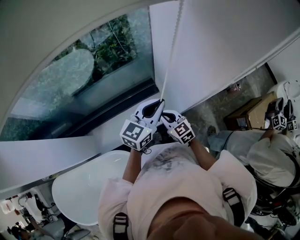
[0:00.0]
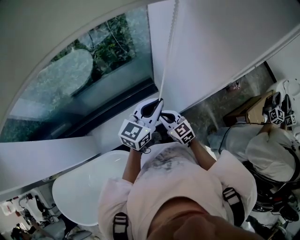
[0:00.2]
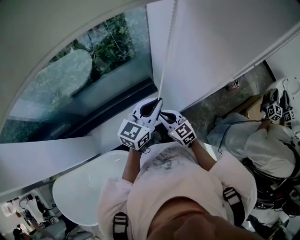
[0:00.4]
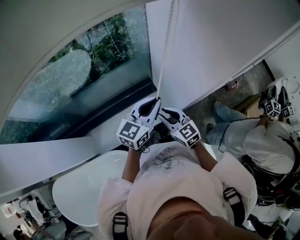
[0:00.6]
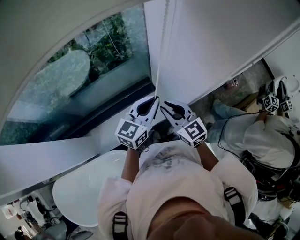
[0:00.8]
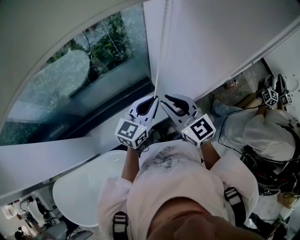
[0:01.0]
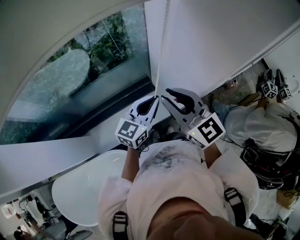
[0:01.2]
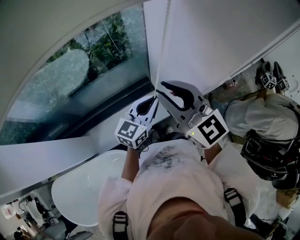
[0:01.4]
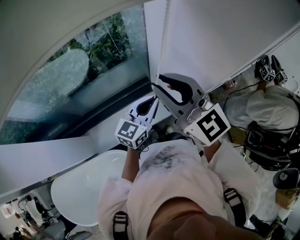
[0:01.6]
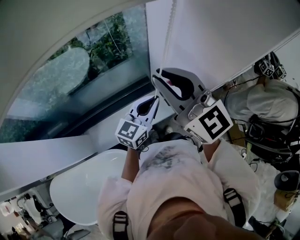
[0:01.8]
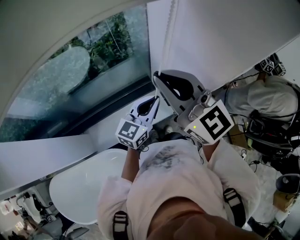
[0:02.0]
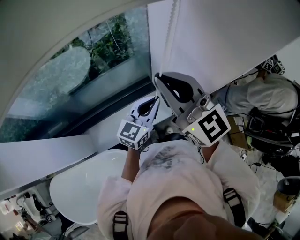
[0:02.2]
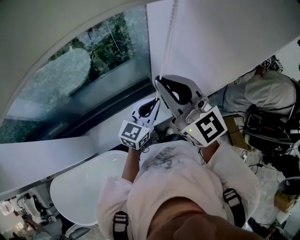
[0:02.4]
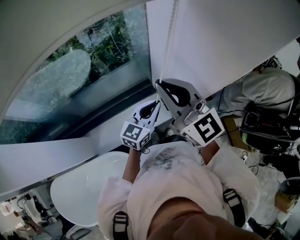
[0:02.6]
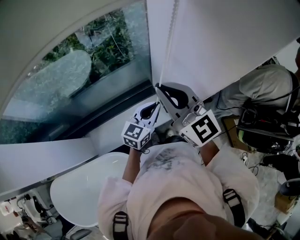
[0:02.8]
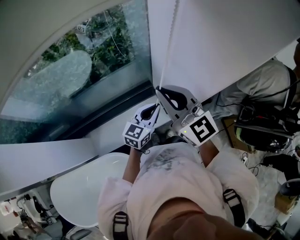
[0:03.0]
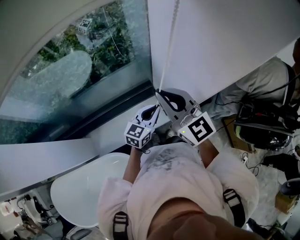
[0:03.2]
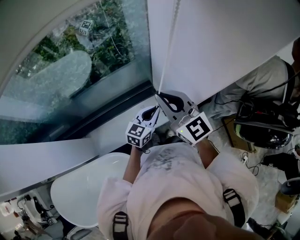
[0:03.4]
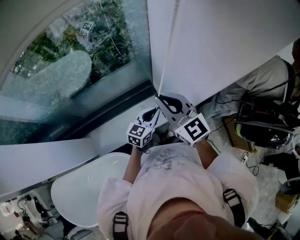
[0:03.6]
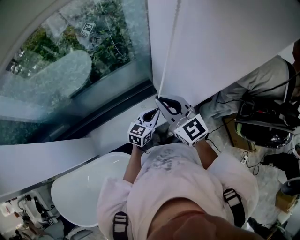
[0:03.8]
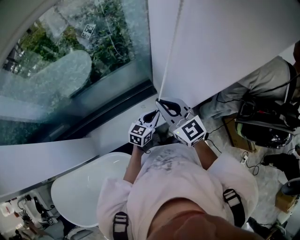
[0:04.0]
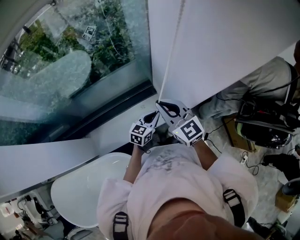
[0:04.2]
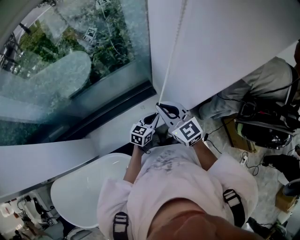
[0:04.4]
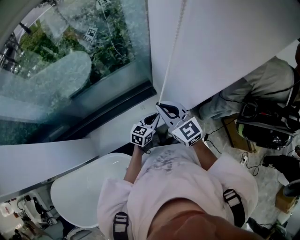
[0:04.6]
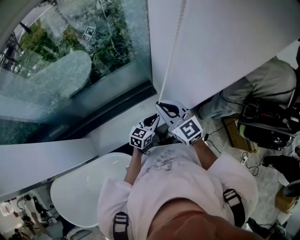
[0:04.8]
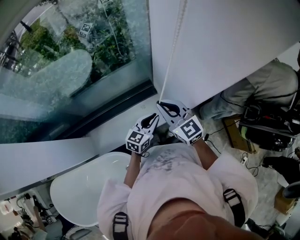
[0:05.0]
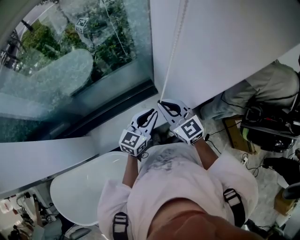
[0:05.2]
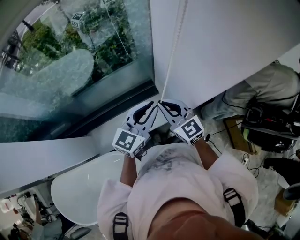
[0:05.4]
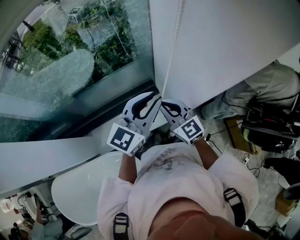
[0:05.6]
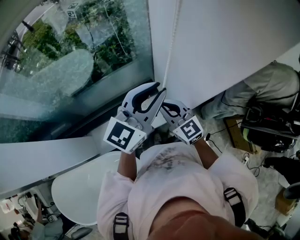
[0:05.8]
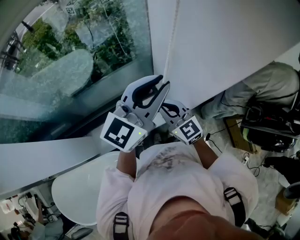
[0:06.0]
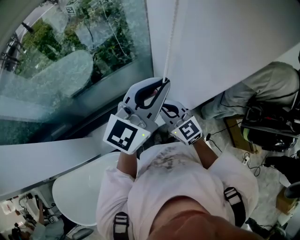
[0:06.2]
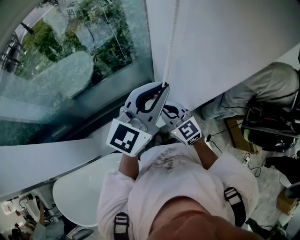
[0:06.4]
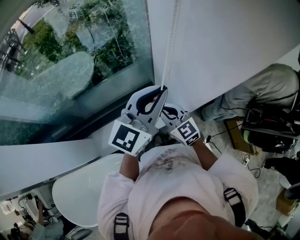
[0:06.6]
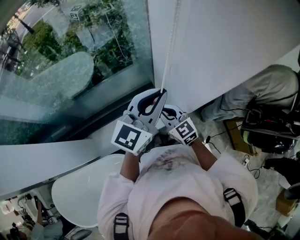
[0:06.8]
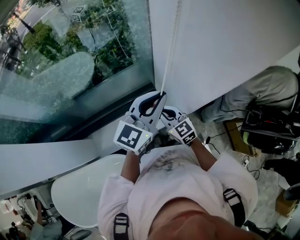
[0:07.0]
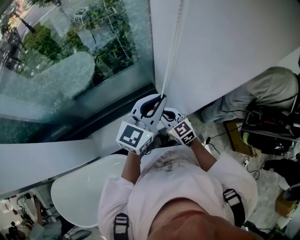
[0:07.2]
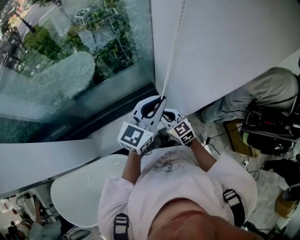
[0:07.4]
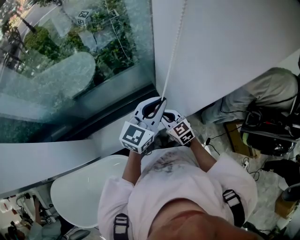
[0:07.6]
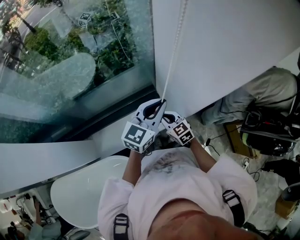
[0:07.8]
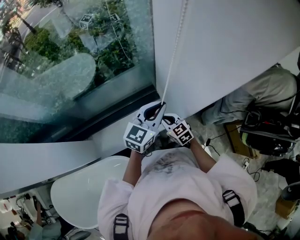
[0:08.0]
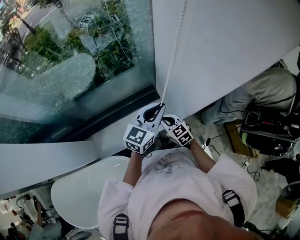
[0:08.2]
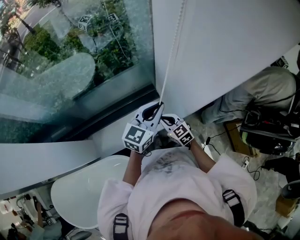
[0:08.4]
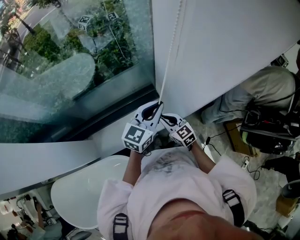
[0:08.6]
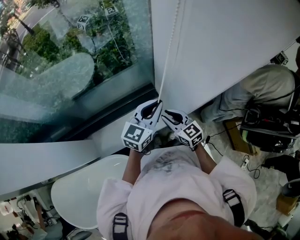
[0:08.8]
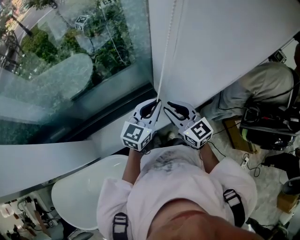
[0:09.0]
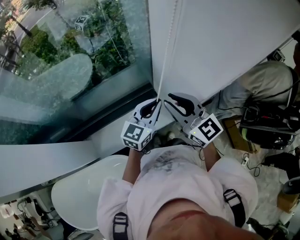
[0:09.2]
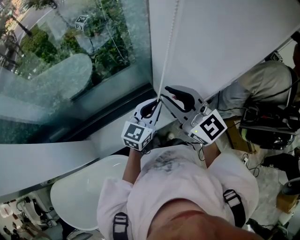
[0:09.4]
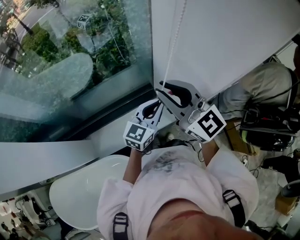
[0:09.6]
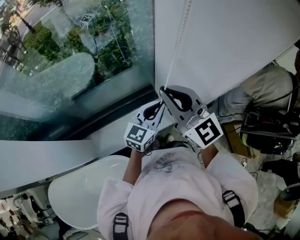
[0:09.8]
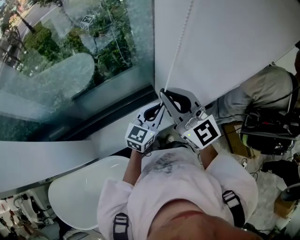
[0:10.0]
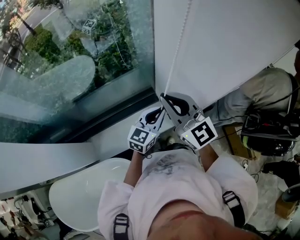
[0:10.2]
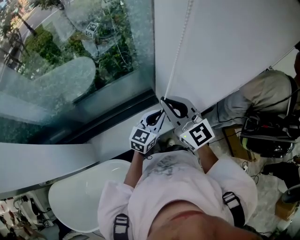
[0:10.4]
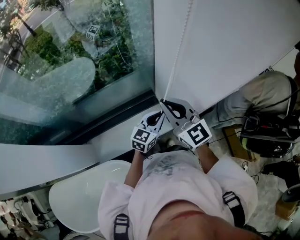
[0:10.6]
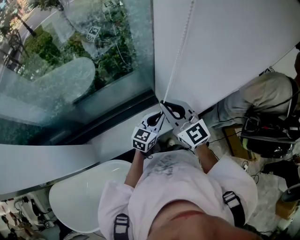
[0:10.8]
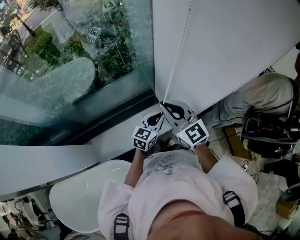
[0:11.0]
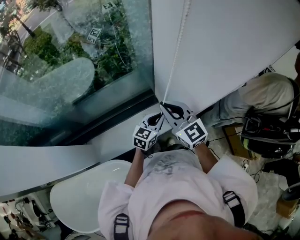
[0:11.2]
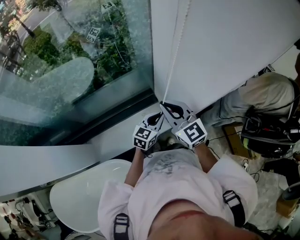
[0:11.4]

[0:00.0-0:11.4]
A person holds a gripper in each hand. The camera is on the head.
0:00.0 to 0:01.4: The right gripper shifts some 30 cm upward, and rotates some 30 degrees.
0:01.4 to 0:02.8: The grippers make only small movements.
0:02.8 to 0:04.2: The two grippers go about 15 cm downward.
0:04.2 to 0:05.6: The left gripper heads upward, covering some 30 cm, and swivels approximately 30 degrees.
0:05.6 to 0:07.2: The left gripper moves approximately 10 cm upward and comes back, while the right gripper moves downward, approximately 10 cm.
0:07.2 to 0:08.6: The right gripper changes place by about 5 cm, while the left gripper heads downward, covering about 5 cm.
0:08.6 to 0:10.0: The right gripper moves upward, some 30 cm, and tilts its fingers about 30 degrees upward.
0:10.0 to 0:11.4: The grippers both shift downward by approximately 10 cm.

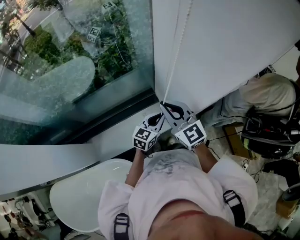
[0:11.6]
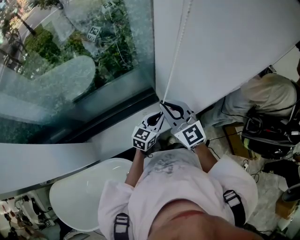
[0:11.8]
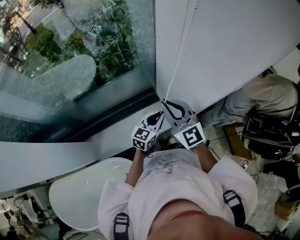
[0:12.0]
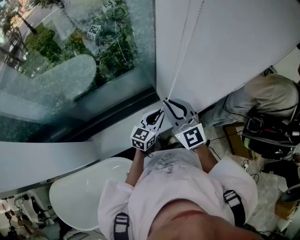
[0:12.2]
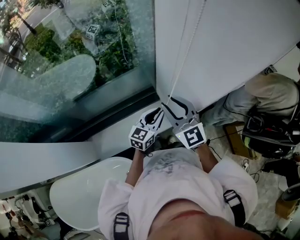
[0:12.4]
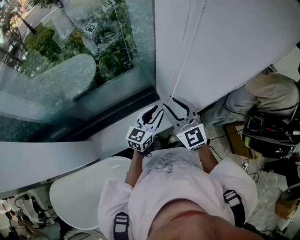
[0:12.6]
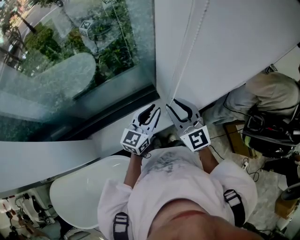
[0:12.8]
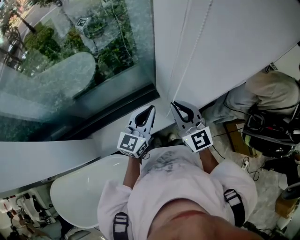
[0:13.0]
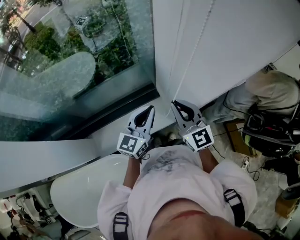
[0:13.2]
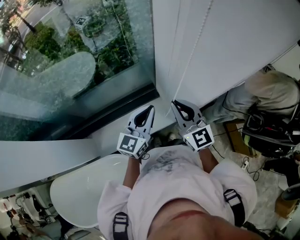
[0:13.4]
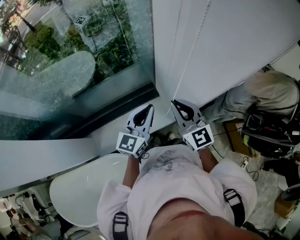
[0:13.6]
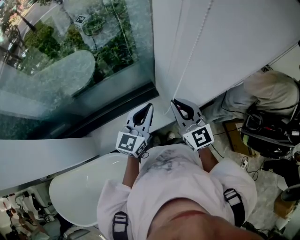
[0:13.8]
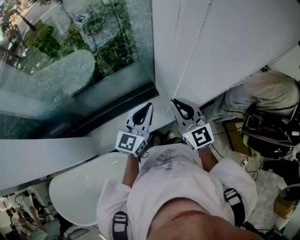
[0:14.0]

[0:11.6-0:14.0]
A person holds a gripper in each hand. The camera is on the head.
0:11.6 to 0:12.8: The right gripper opens; the left gripper moves upward, about 10 cm.
0:12.8 to 0:14.0: The left gripper closes up. Meanwhile the right gripper closes.

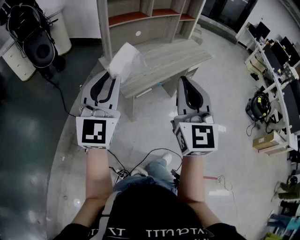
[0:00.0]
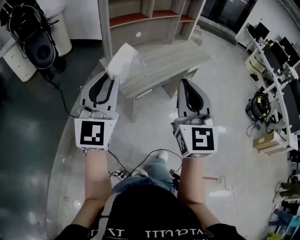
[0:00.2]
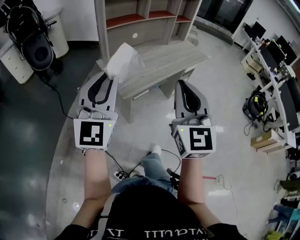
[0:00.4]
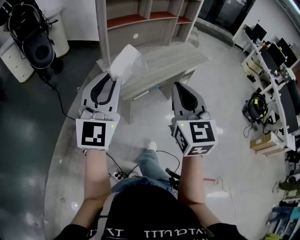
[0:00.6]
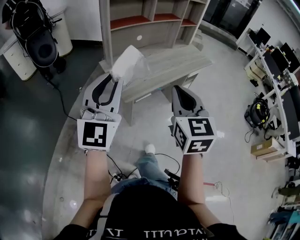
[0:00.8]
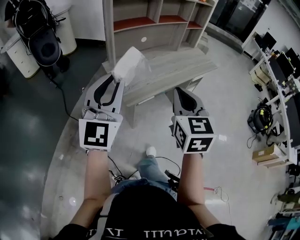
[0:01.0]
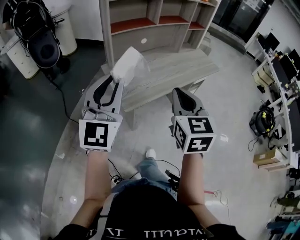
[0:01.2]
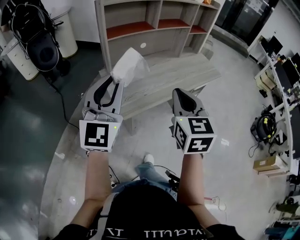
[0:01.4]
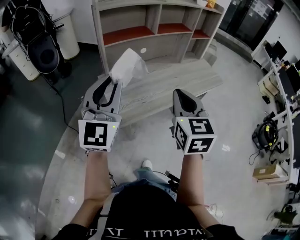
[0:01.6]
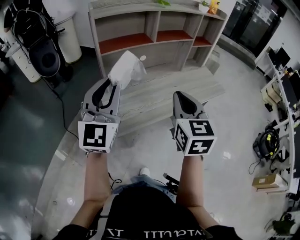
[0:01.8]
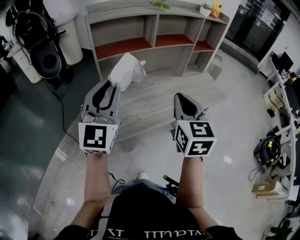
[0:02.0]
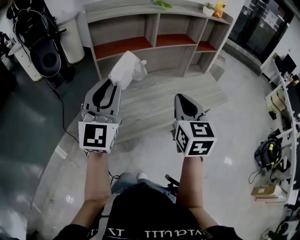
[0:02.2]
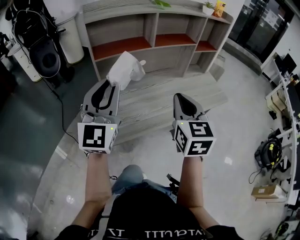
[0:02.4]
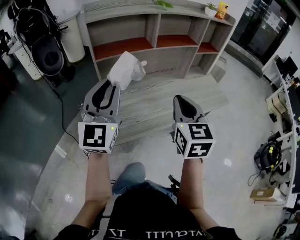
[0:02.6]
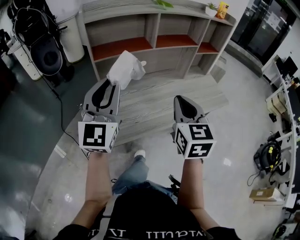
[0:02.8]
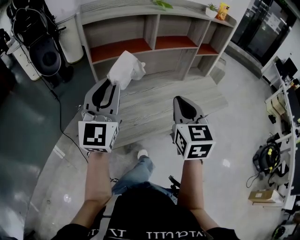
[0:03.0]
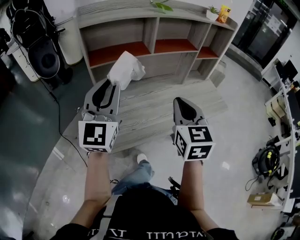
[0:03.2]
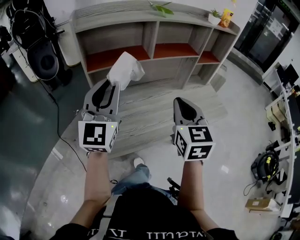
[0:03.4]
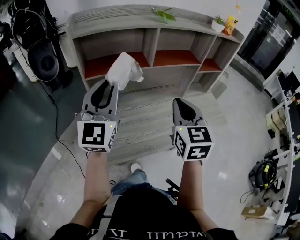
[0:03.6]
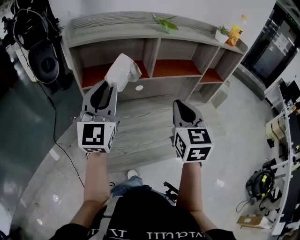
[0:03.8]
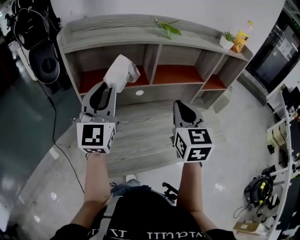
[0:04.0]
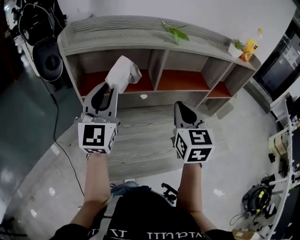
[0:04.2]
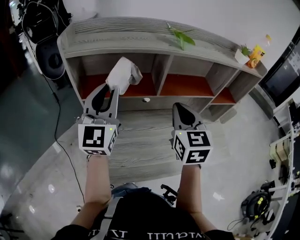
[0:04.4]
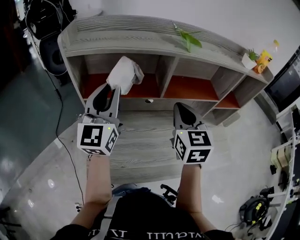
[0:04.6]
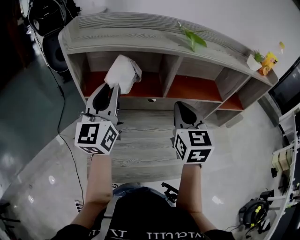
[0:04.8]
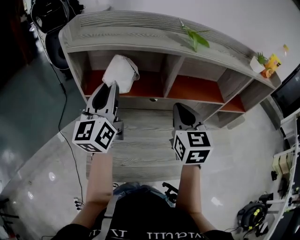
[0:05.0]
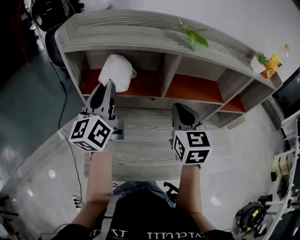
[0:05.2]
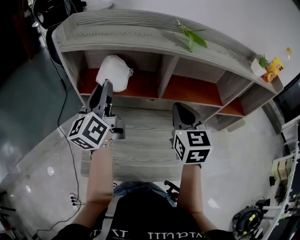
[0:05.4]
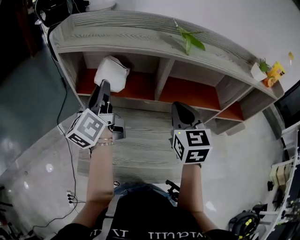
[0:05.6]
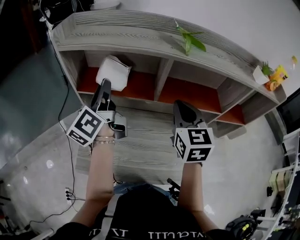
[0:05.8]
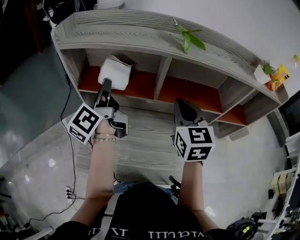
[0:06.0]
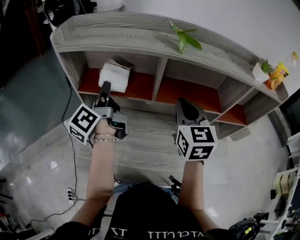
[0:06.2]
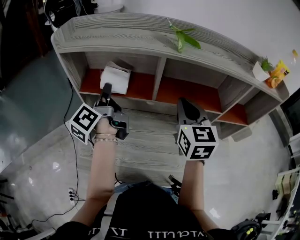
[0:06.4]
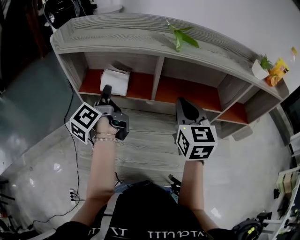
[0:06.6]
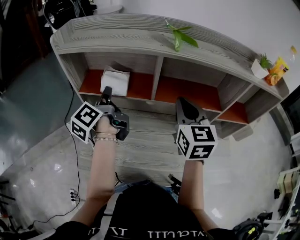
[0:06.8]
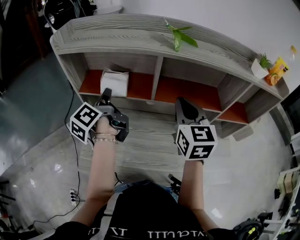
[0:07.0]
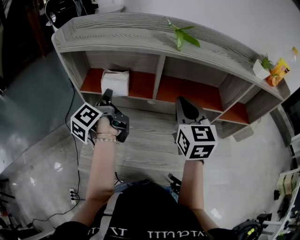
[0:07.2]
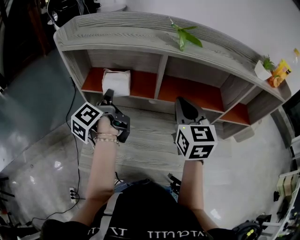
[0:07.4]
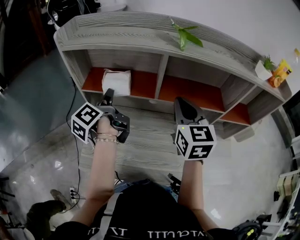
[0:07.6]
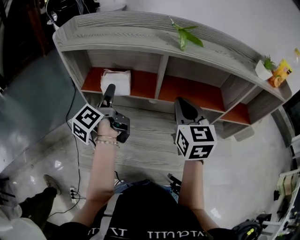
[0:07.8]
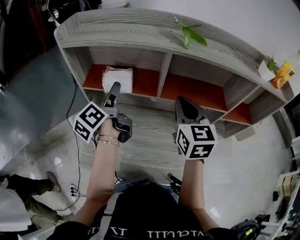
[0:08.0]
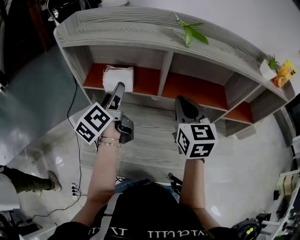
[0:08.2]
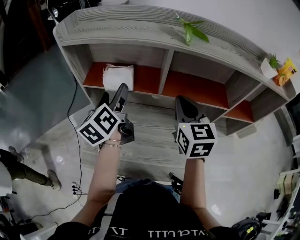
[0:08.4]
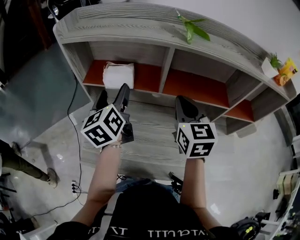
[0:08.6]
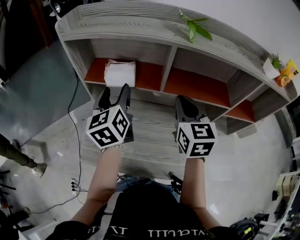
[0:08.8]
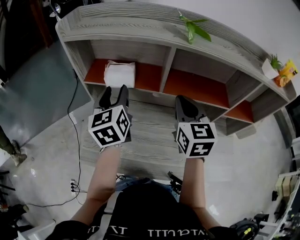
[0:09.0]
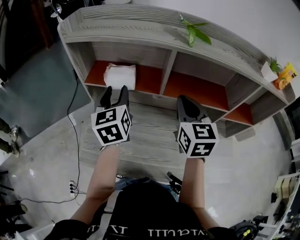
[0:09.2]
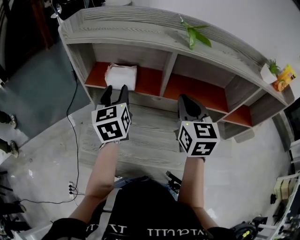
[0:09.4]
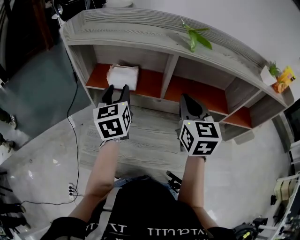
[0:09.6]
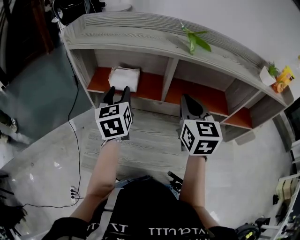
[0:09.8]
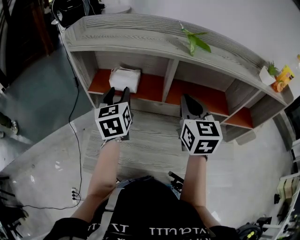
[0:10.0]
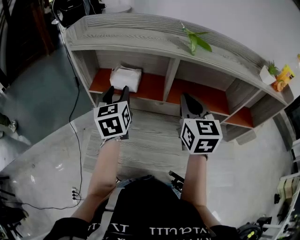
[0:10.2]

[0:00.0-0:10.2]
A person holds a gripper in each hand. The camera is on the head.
0:00.0 to 0:01.4: Both grippers move forward, roughly 15 cm. The right gripper turns by roughly 20 degrees.
0:01.4 to 0:03.0: The right gripper goes roughly 20 cm forward and to the right. Meanwhile the left gripper is displaced forward by some 20 cm.
0:03.0 to 0:04.4: The grippers both shift forward by roughly 25 cm.
0:04.4 to 0:05.8: The grippers both shift forward by some 5 cm. The left gripper twists roughly 60 degrees counterclockwise, seen from behind.
0:05.8 to 0:07.2: The left gripper travels downward by roughly 5 cm, and changes its angle by some 30 degrees.
0:07.2 to 0:08.8: The left gripper twists roughly 50 degrees clockwise, seen from behind, and opens up.
0:08.8 to 0:10.2: The grippers stay close to where they were, moving slightly.
